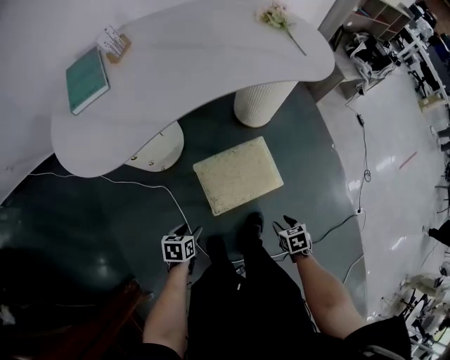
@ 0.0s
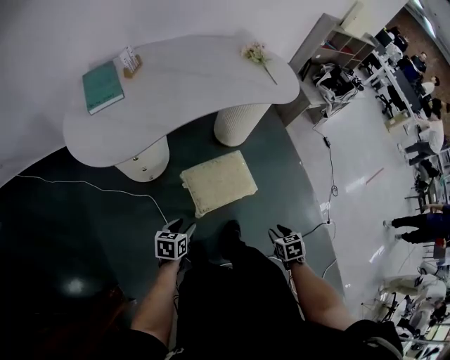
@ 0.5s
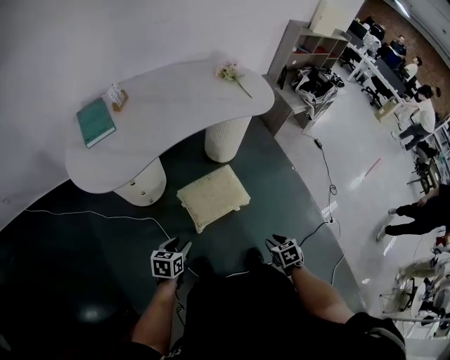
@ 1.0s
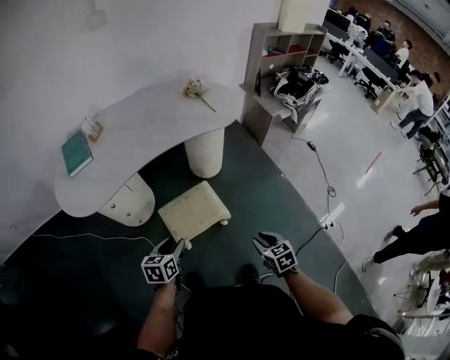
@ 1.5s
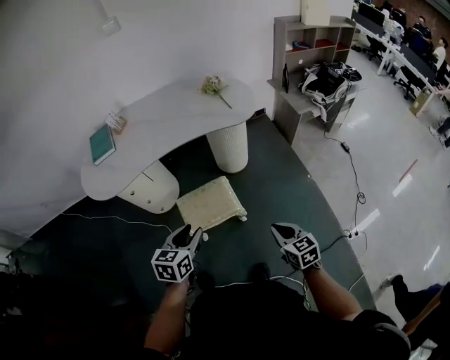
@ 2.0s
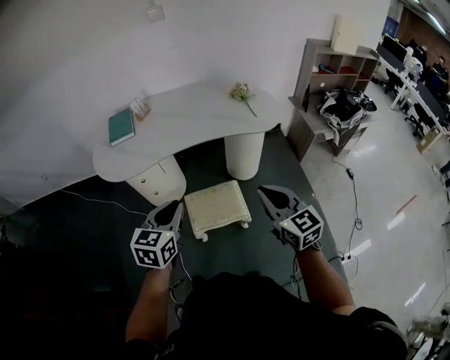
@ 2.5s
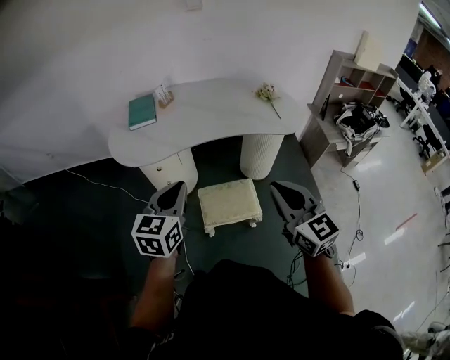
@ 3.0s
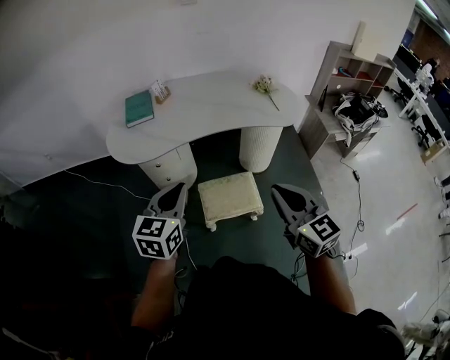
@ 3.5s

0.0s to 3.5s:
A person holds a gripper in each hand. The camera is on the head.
0.0s to 2.0s: Both grippers travel together upward and to the right, about 40 cm. The left gripper changes its angle by roughly 30 degrees, while the right gripper angles its fingers upward, by approximately 40 degrees, and closes its fingers.
2.0s to 3.5s: The left gripper goes some 25 cm to the left and upward, swivels roughly 20 degrees, and closes its fingers, while the right gripper heads upward and to the left, covering approximately 30 cm, and turns by roughly 30 degrees.

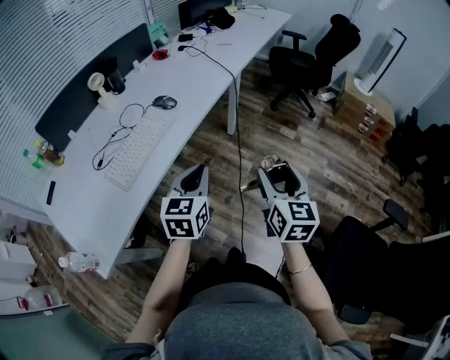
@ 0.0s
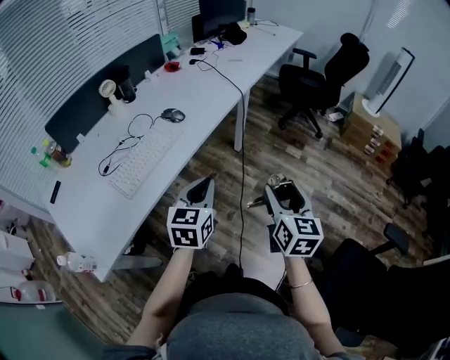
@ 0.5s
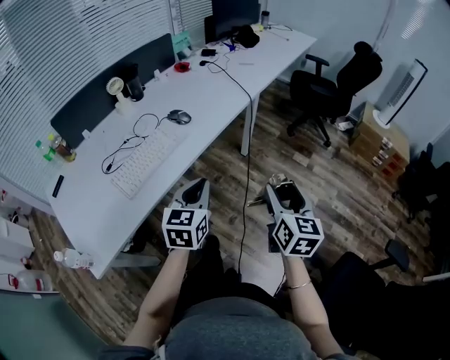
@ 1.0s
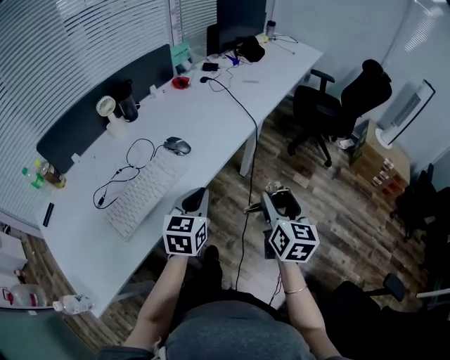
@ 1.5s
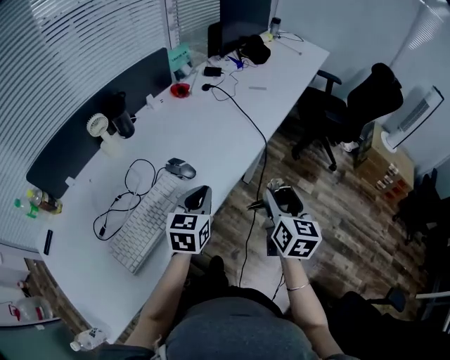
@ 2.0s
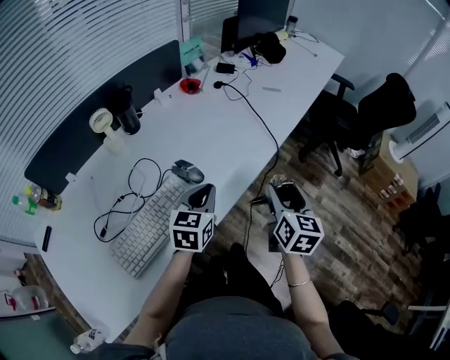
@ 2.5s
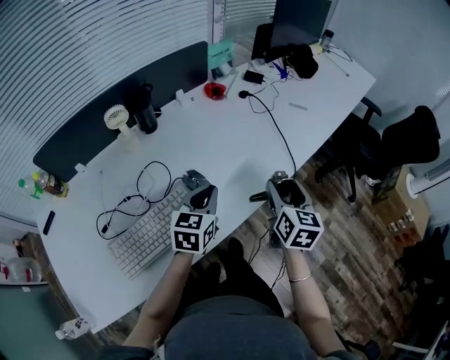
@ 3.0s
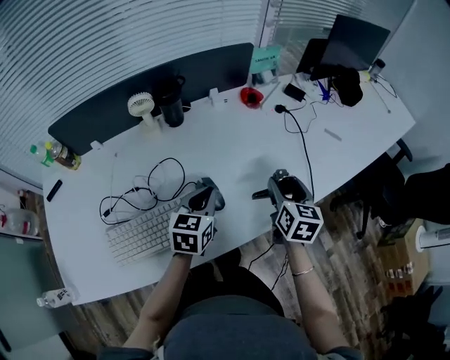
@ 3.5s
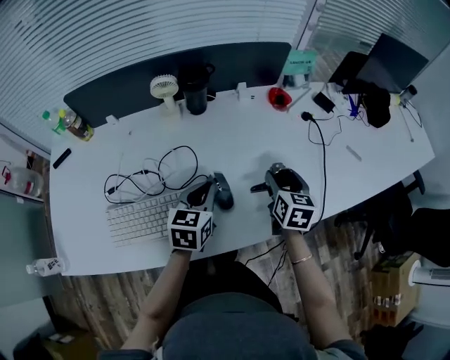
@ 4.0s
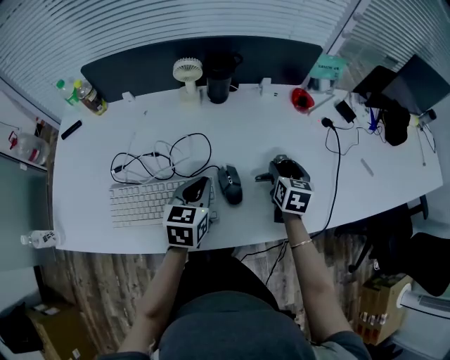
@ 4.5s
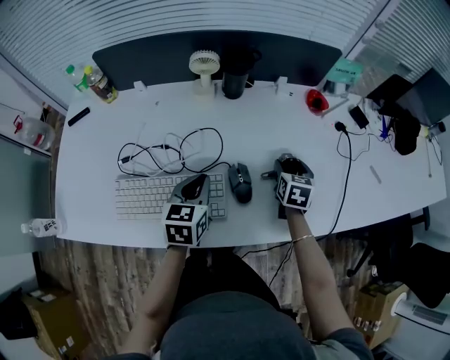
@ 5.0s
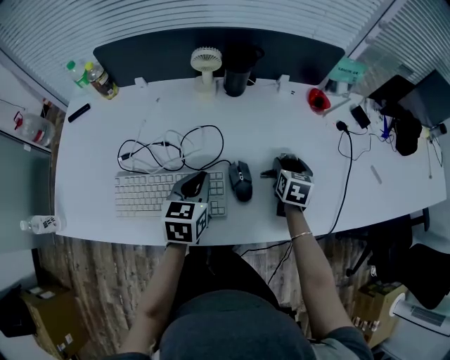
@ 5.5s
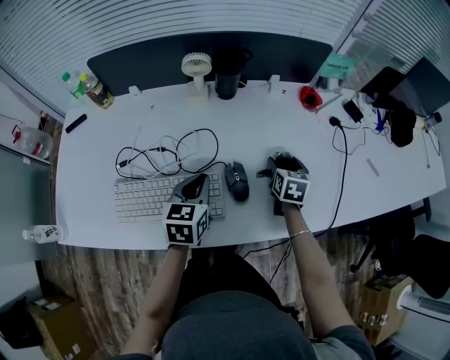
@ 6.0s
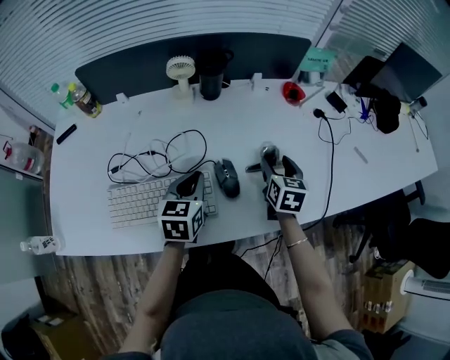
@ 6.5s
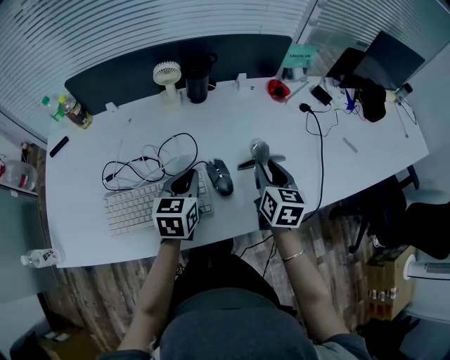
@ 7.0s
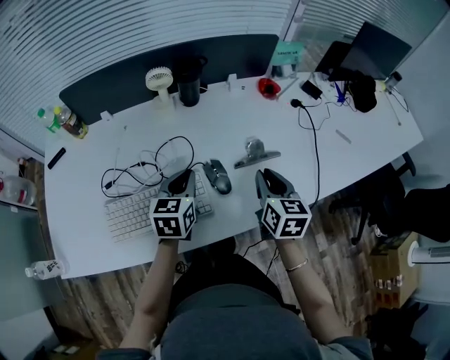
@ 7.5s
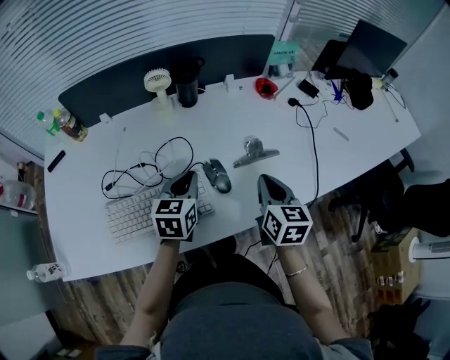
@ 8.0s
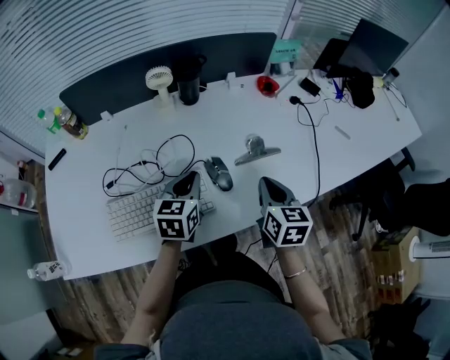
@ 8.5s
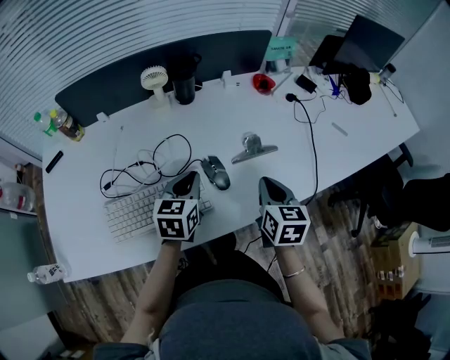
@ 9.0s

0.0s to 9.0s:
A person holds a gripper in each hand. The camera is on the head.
0.0s to 2.0s: Both grippers move forward, some 30 cm.
2.0s to 4.5s: The left gripper changes place by about 20 cm, and swivels roughly 50 degrees, while the right gripper ends up about 40 cm from where it was, and turns by some 50 degrees.
4.5s to 7.0s: The right gripper is displaced backward and upward by roughly 10 cm, and closes up.
7.0s to 9.0s: The right gripper is displaced backward by some 10 cm, and closes its fingers.

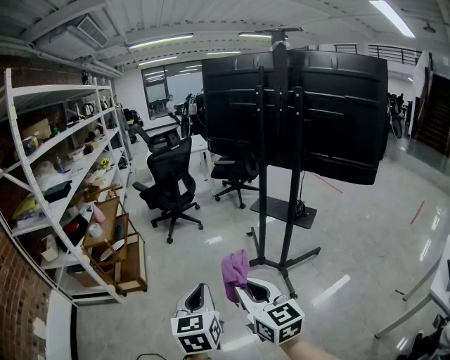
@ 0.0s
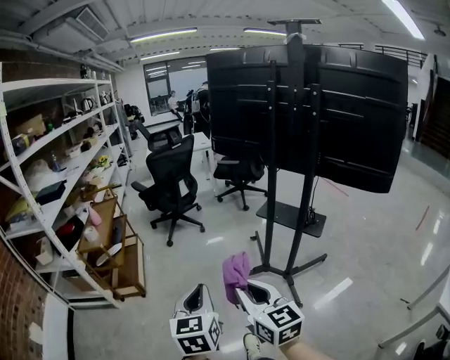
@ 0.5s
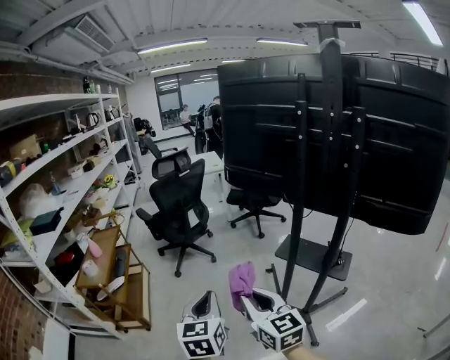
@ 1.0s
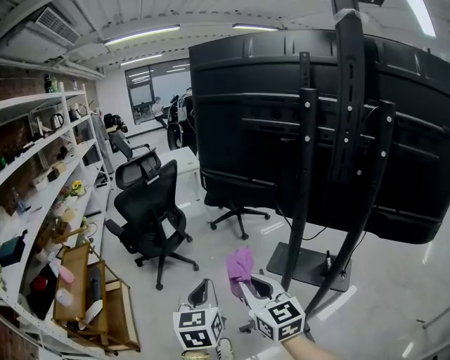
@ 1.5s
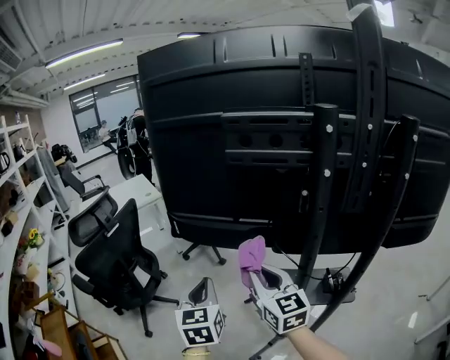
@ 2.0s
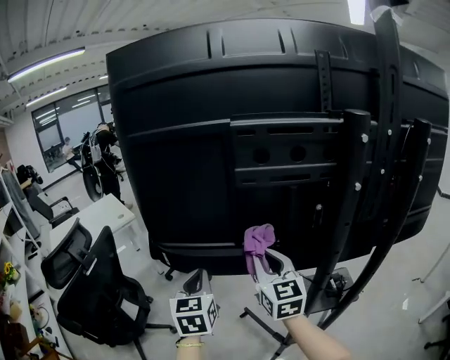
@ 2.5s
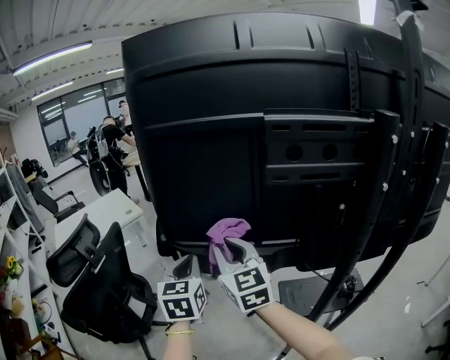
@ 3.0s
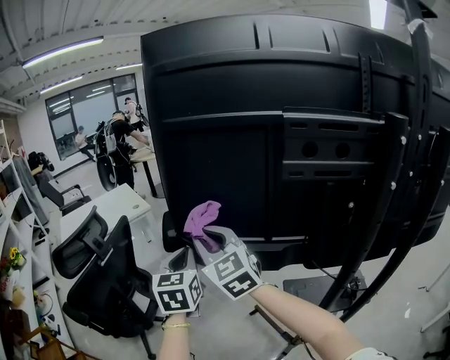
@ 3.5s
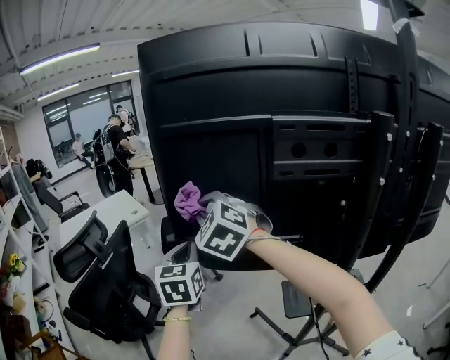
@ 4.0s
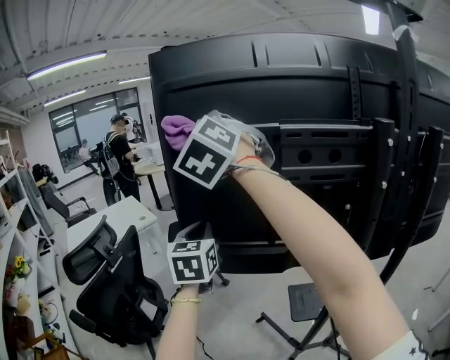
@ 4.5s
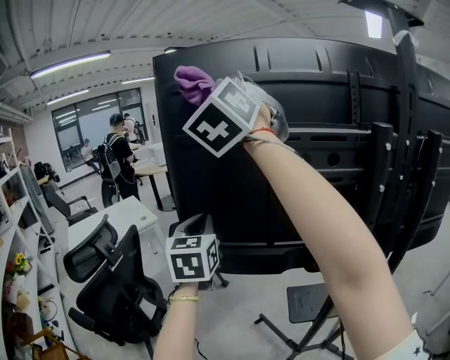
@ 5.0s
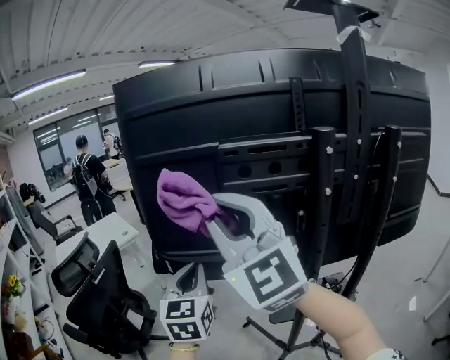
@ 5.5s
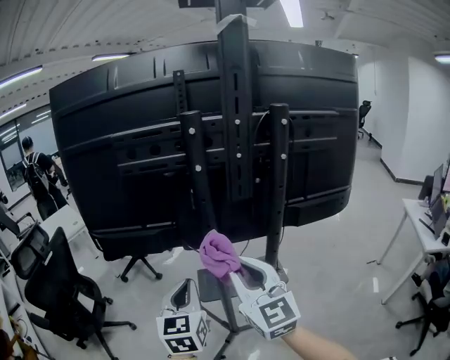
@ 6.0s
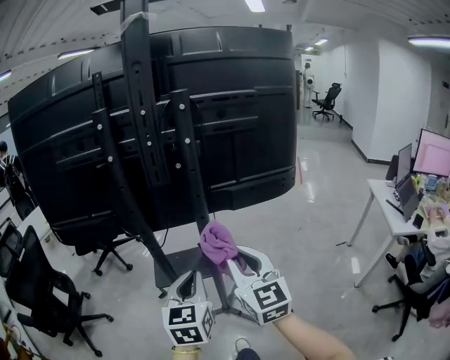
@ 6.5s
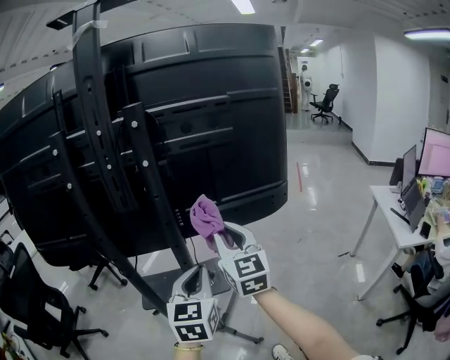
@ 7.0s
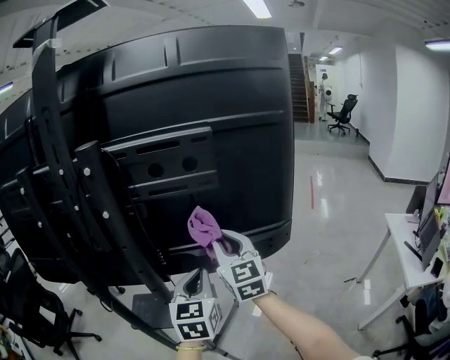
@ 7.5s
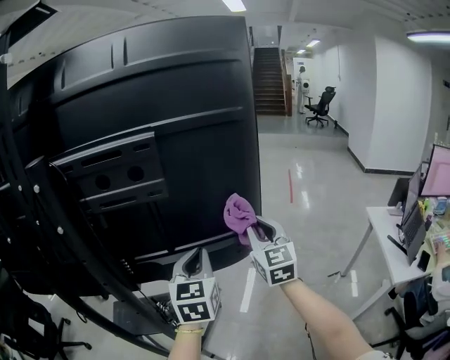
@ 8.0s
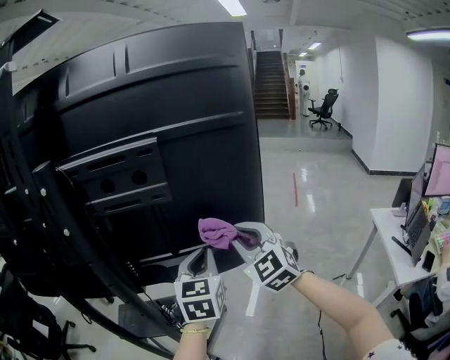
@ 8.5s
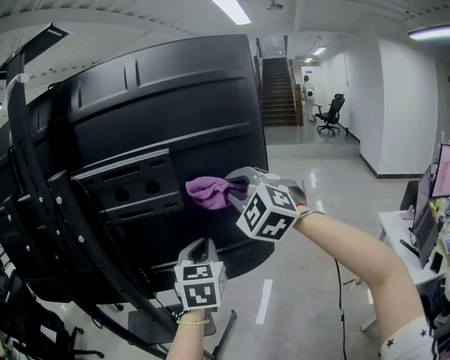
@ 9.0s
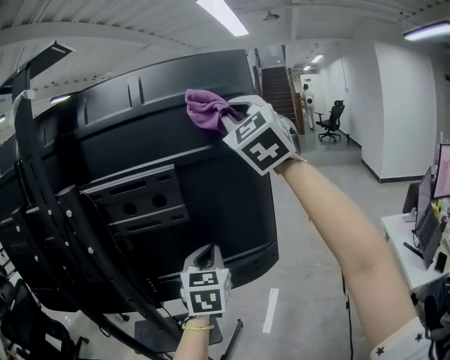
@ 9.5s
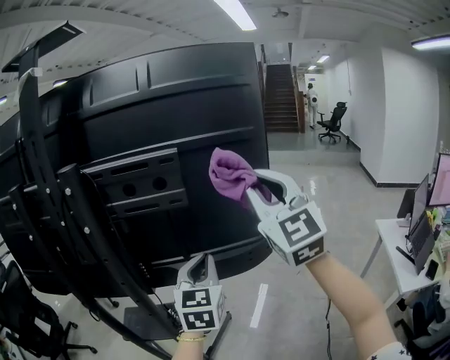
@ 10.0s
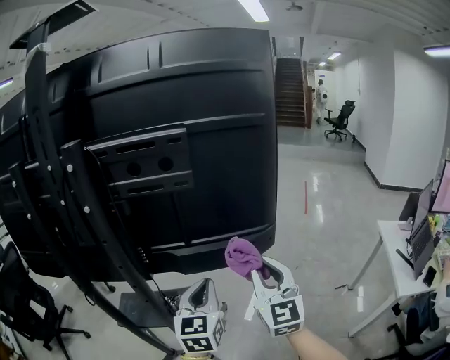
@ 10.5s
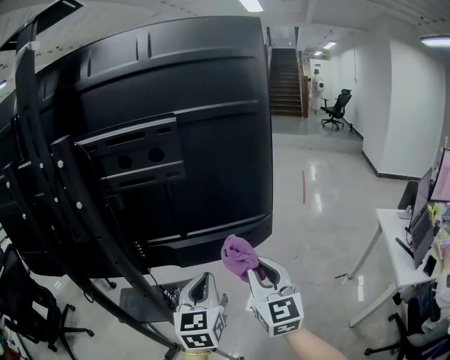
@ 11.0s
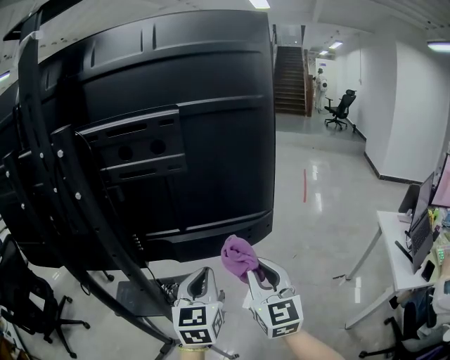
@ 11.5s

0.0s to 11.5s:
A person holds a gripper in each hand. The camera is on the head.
0.0s to 2.0s: The pair of grippers is taken some 80 cm. The left gripper changes its angle by about 20 degrees. The right gripper swivels approximately 30 degrees.
2.0s to 4.0s: The right gripper travels forward, to the left and upward by some 30 cm, and rotates around the line of its fingers by approximately 50 degrees, counterclockwise from behind; the left gripper heads forward and to the left, covering some 20 cm.
4.0s to 6.0s: Both grippers are carried to the right and backward, approximately 50 cm. The right gripper rotates roughly 50 degrees.
6.0s to 7.5s: The two grippers travel together, to the right and forward, approximately 50 cm.
7.5s to 9.5s: The left gripper travels to the right, upward and forward by approximately 15 cm; the right gripper travels upward and to the right by about 40 cm, and rotates about 40 degrees.
9.5s to 11.5s: The right gripper heads downward, covering some 40 cm, and swivels roughly 40 degrees; the left gripper goes approximately 15 cm downward and backward.

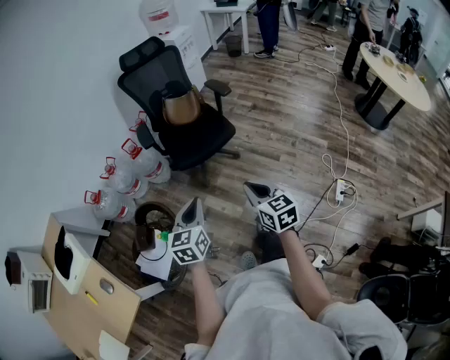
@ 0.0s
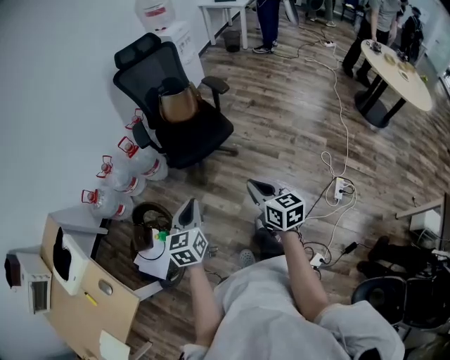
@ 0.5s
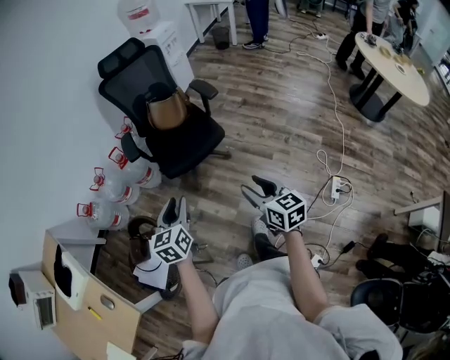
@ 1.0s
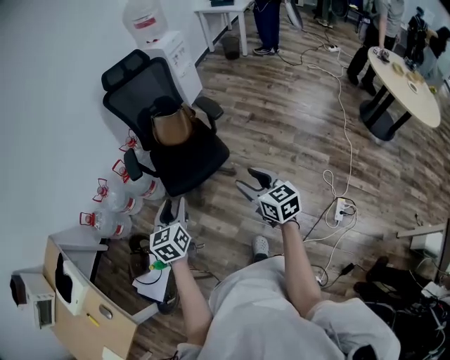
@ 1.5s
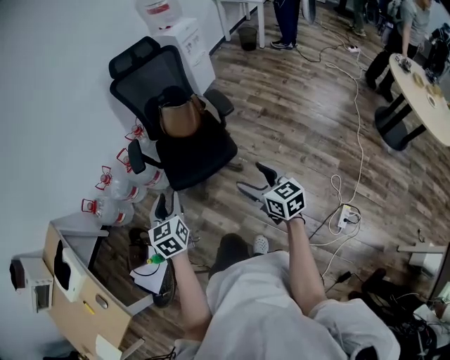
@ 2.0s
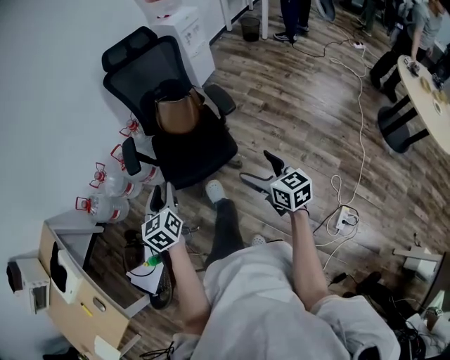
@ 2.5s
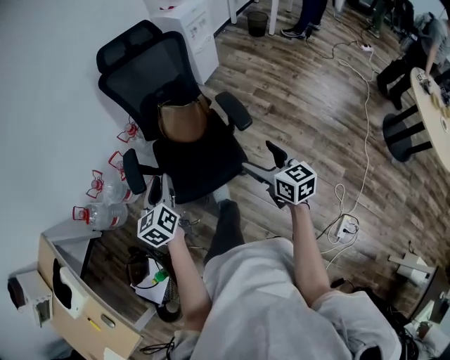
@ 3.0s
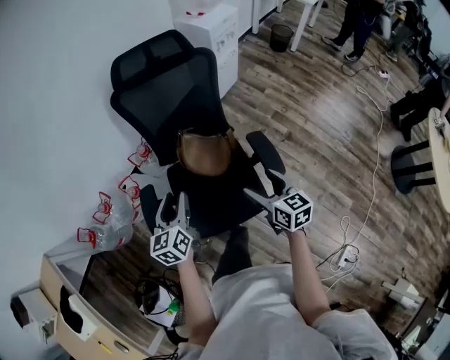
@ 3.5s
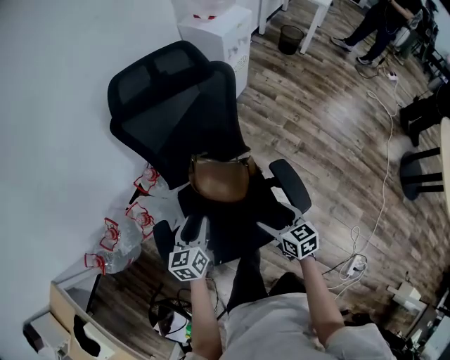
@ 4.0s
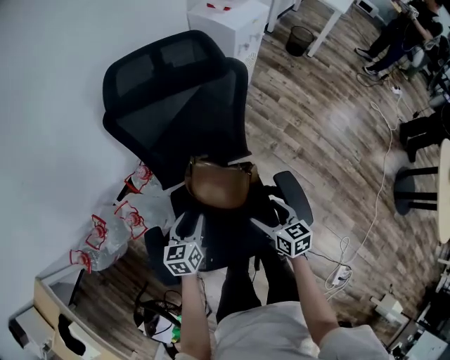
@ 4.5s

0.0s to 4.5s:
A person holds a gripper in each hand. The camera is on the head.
0.0s to 2.0s: The right gripper goes about 30 cm forward and to the right, and opens. The left gripper is displaced forward by about 25 cm, changes its angle by about 20 degrees, and opens up.
2.0s to 4.5s: The two grippers travel together, forward, approximately 60 cm. The left gripper shifts about 25 cm downward, and rotates some 20 degrees; the right gripper swivels about 20 degrees.
